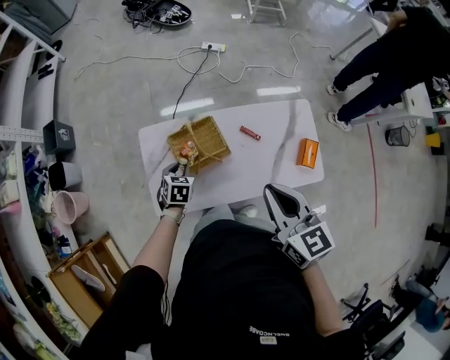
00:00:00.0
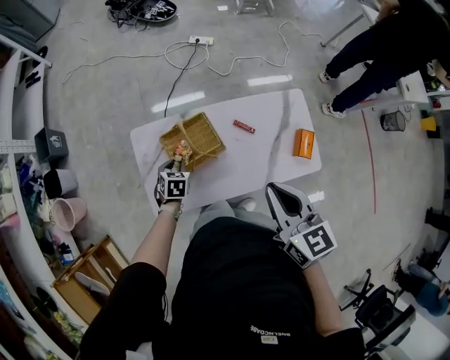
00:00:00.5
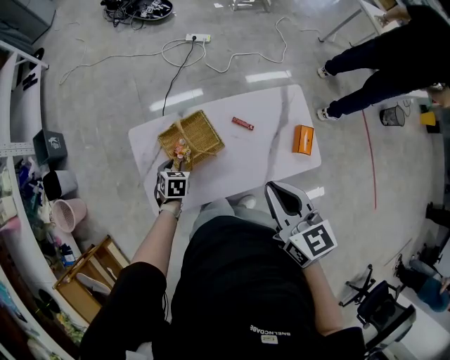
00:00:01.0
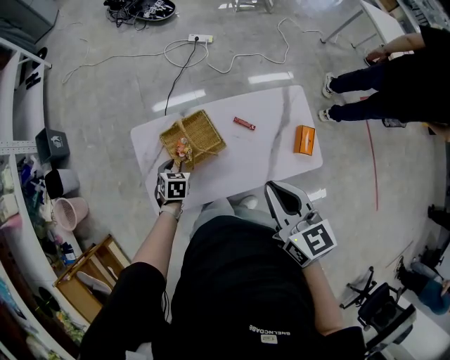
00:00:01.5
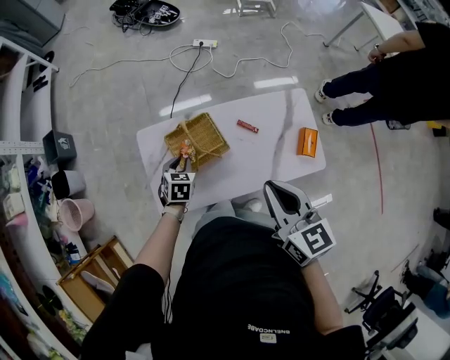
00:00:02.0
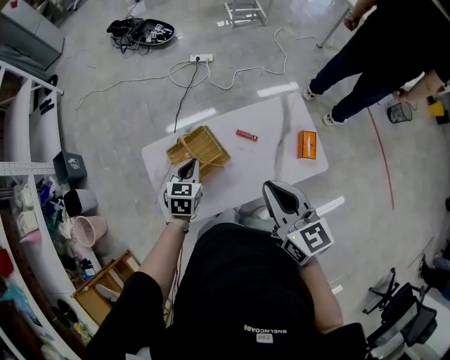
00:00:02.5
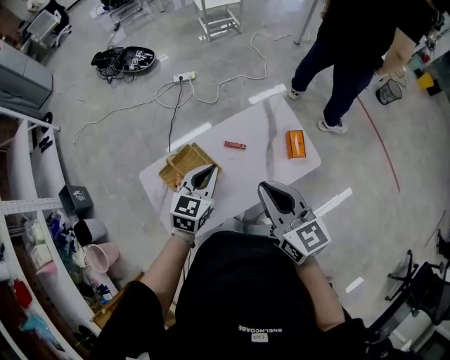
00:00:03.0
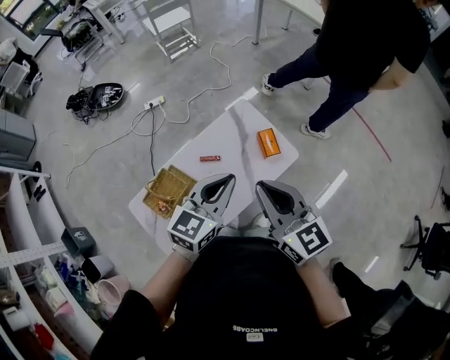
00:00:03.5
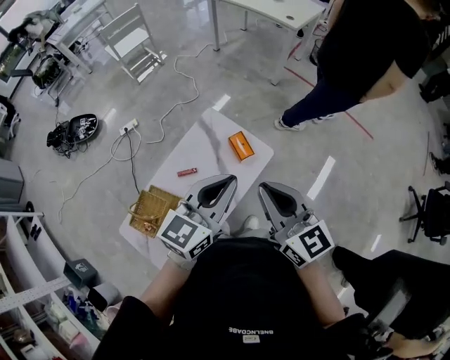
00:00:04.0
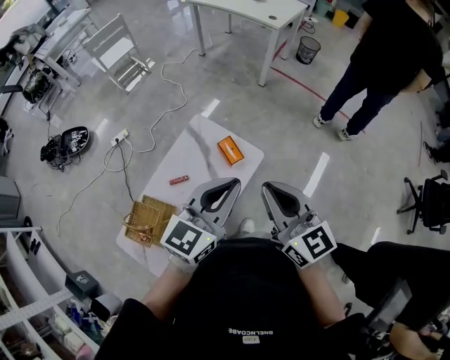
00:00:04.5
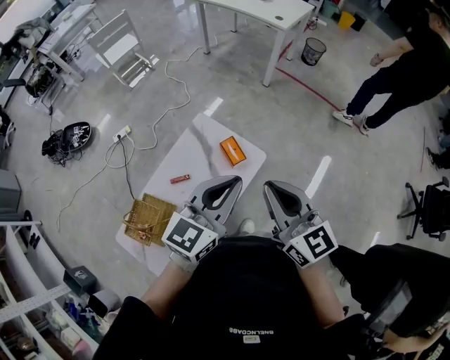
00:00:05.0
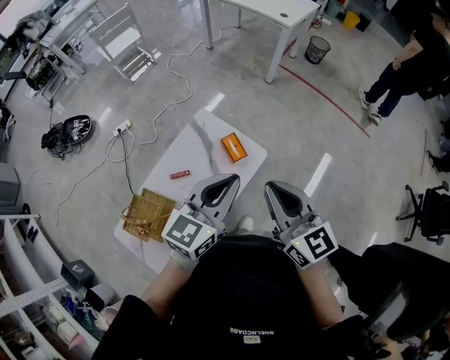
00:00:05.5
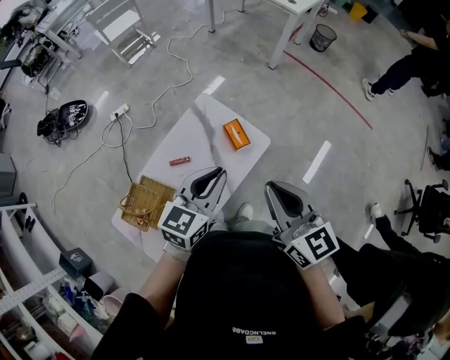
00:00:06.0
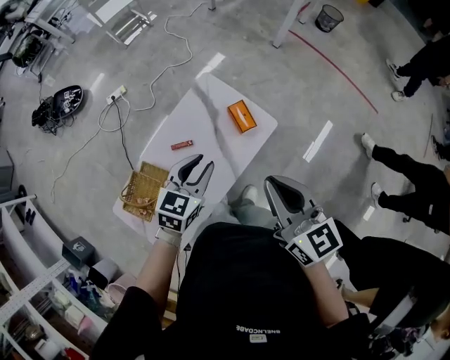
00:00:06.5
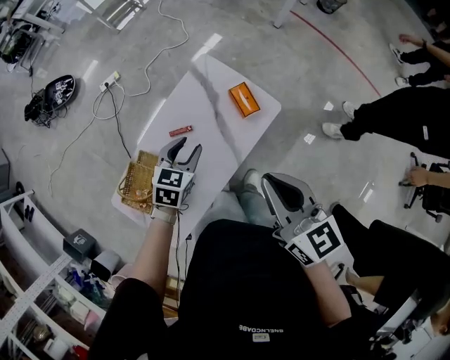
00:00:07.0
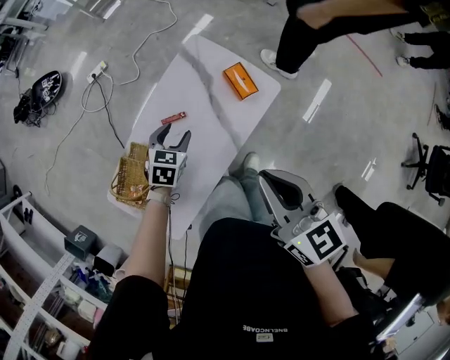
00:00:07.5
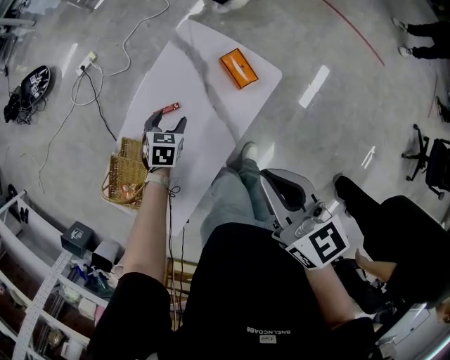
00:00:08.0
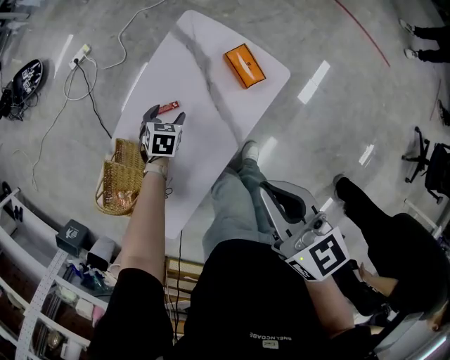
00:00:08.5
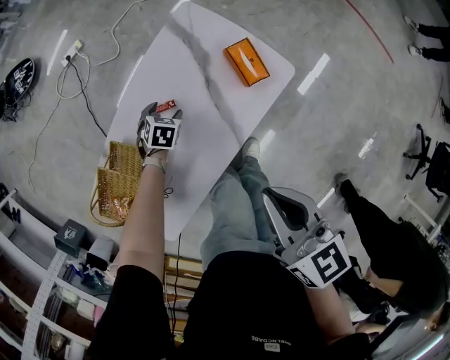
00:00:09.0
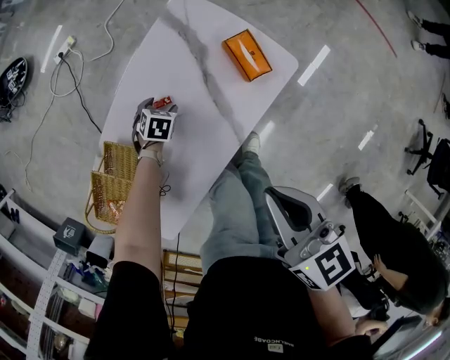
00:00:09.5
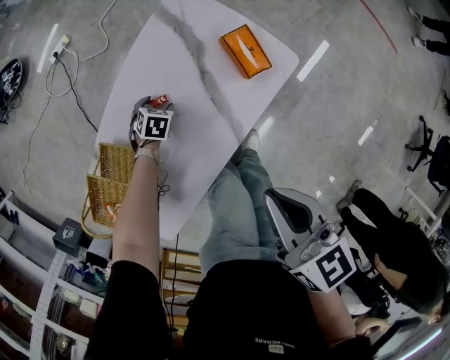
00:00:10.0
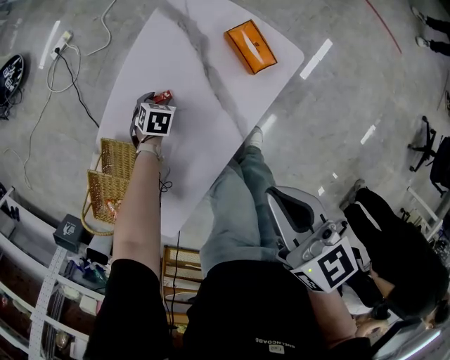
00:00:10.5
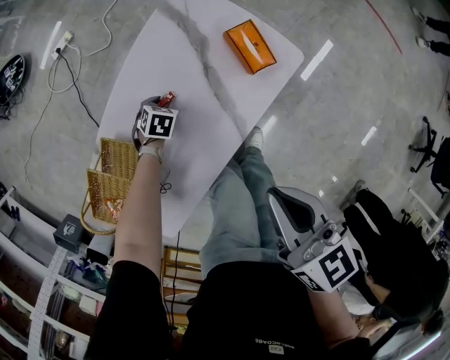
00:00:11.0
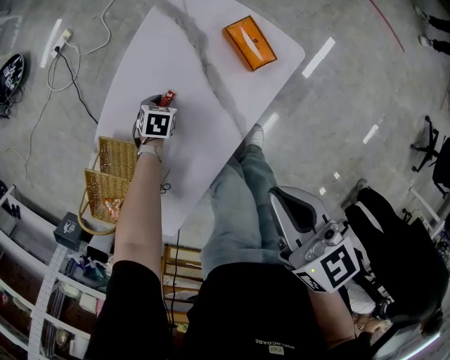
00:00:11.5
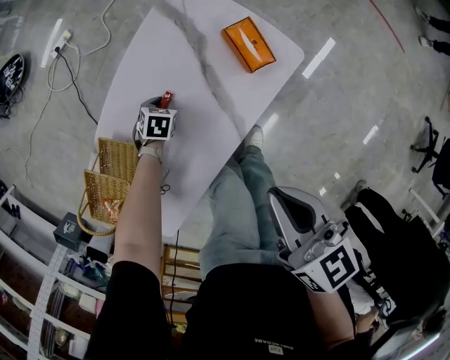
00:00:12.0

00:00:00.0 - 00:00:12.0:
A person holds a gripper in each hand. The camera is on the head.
00:00:00.0 - 00:00:02.0: The grippers move only a little.
00:00:02.0 - 00:00:04.0: The left gripper shifts by about 60 cm, and tips its fingers upward by some 50 degrees. Meanwhile the right gripper shifts by roughly 25 cm, and turns by approximately 40 degrees.
00:00:04.0 - 00:00:06.0: The left gripper heads downward, covering roughly 10 cm.
00:00:06.0 - 00:00:08.0: The right gripper heads downward and to the left, covering roughly 15 cm. Meanwhile the left gripper shifts some 40 cm downward and to the left, tips its fingers downward by approximately 40 degrees, and opens.
00:00:08.0 - 00:00:10.0: The right gripper goes about 10 cm downward. Meanwhile the left gripper is displaced downward by some 20 cm.
00:00:10.0 - 00:00:12.0: The left gripper closes.

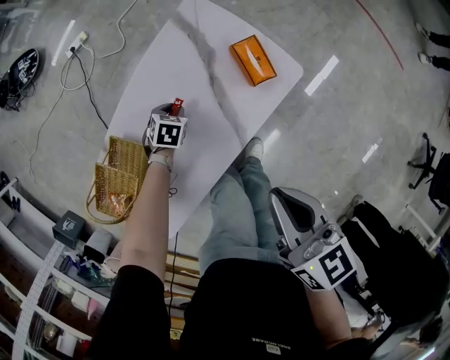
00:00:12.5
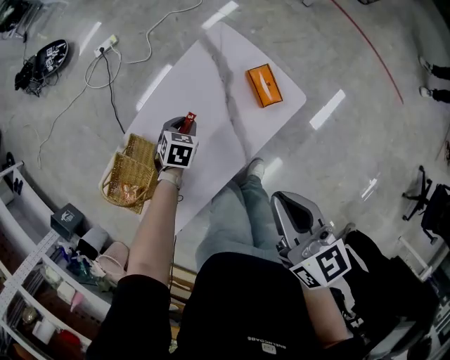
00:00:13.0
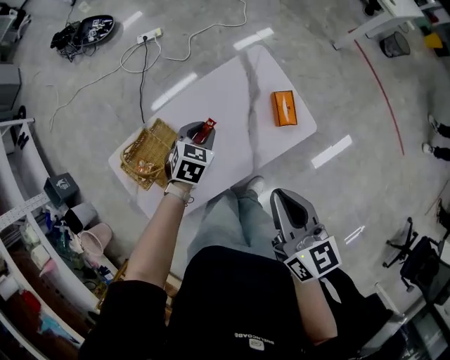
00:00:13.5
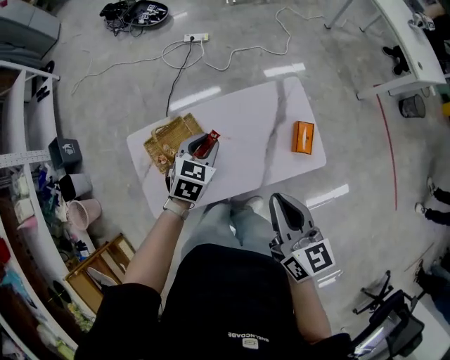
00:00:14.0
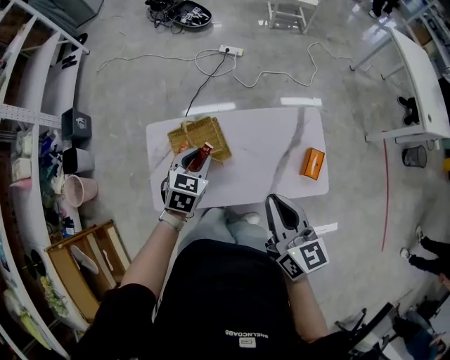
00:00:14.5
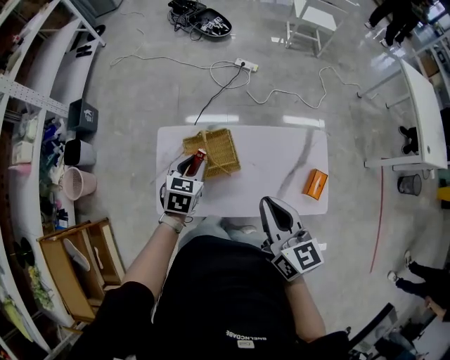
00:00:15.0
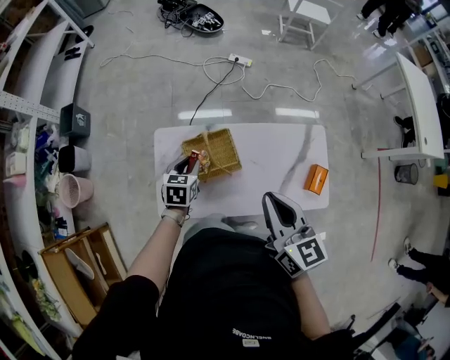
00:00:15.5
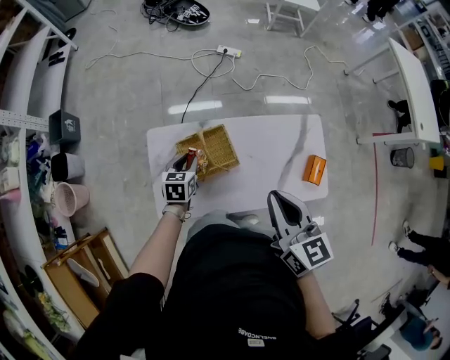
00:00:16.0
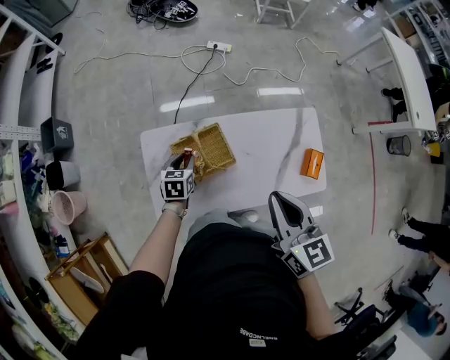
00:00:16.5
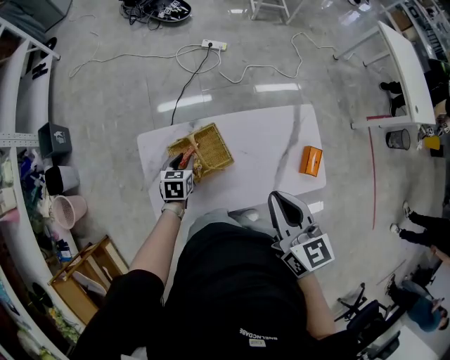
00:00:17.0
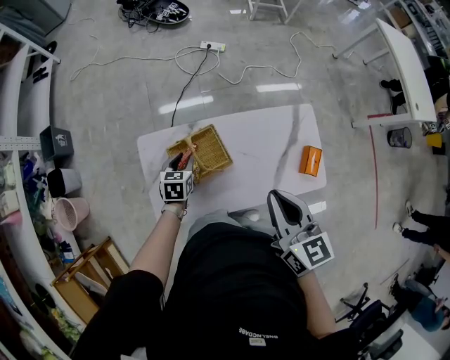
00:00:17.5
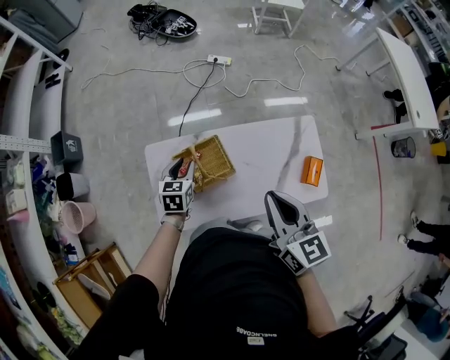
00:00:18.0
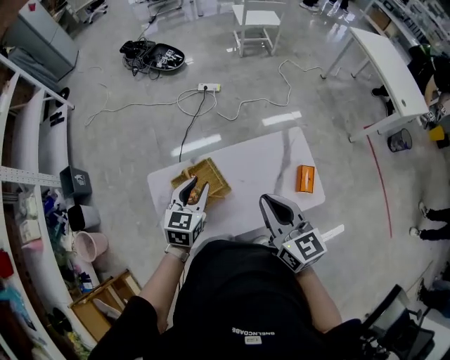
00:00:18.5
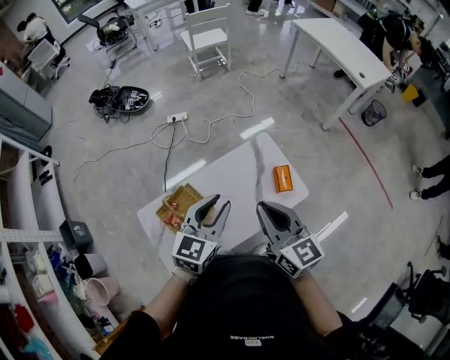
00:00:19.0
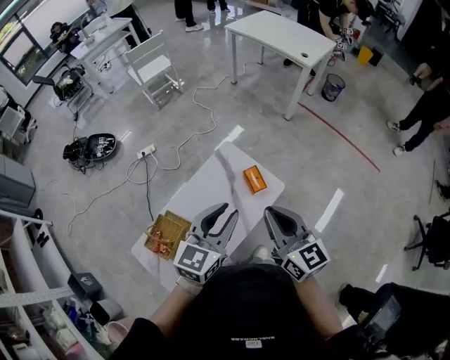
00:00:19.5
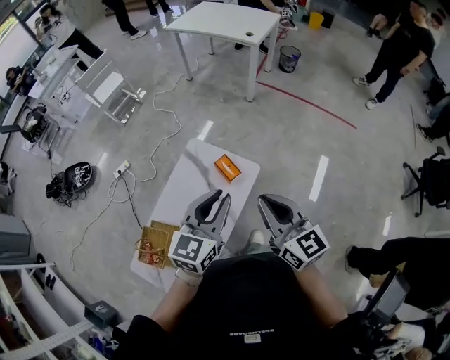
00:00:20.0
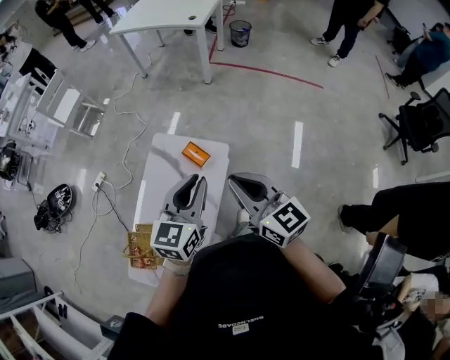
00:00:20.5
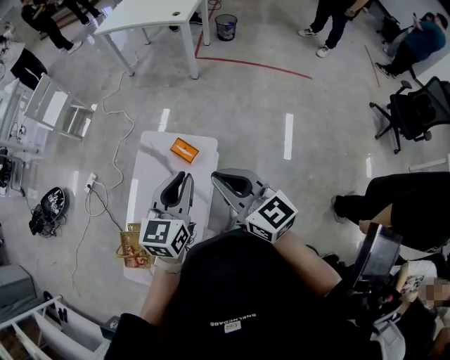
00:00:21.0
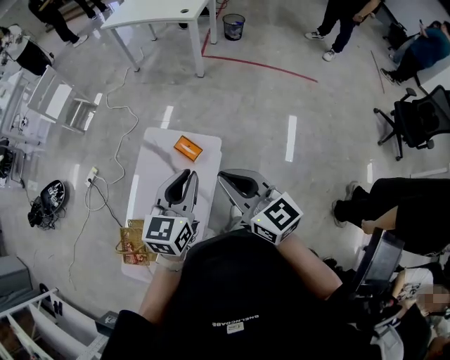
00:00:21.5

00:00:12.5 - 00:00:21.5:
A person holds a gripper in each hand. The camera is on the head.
00:00:12.5 - 00:00:14.5: The left gripper travels upward by roughly 40 cm, and turns by approximately 50 degrees. The right gripper moves upward, roughly 15 cm, and rotates approximately 40 degrees.
00:00:14.5 - 00:00:17.0: The left gripper shifts approximately 20 cm downward, to the left and forward, and turns by roughly 20 degrees, while the right gripper goes roughly 10 cm to the left and forward.
00:00:17.0 - 00:00:19.5: The left gripper changes place by about 60 cm, and tilts its fingers approximately 40 degrees upward. The right gripper moves approximately 30 cm, and changes its angle by approximately 40 degrees.
00:00:19.5 - 00:00:21.5: The two grippers go about 10 cm to the right.

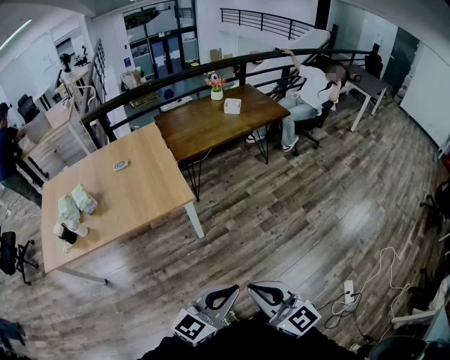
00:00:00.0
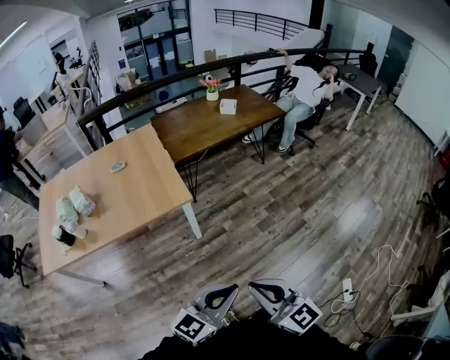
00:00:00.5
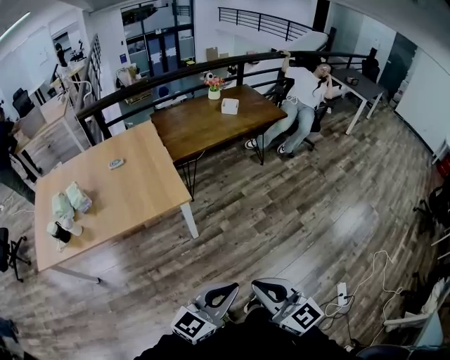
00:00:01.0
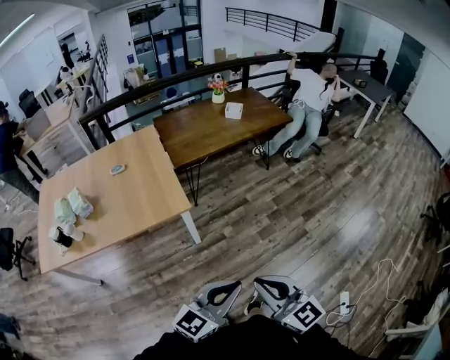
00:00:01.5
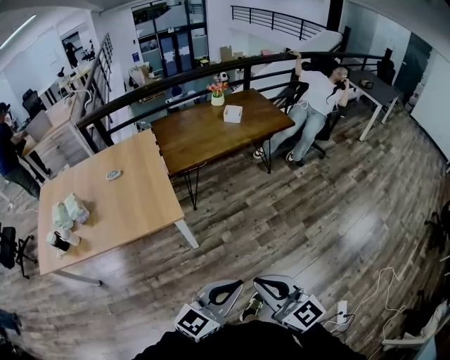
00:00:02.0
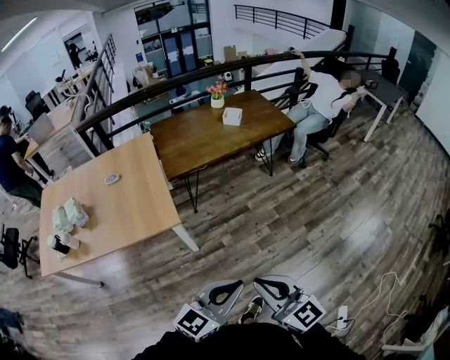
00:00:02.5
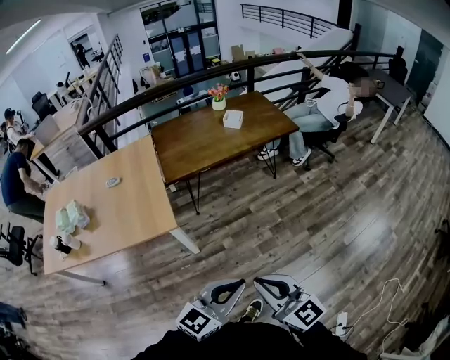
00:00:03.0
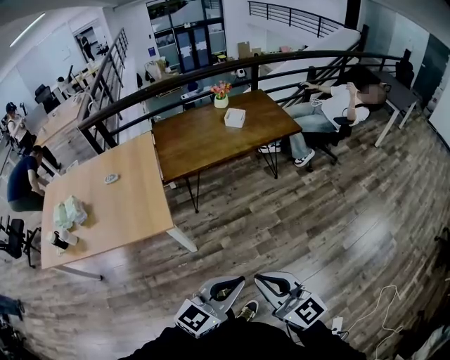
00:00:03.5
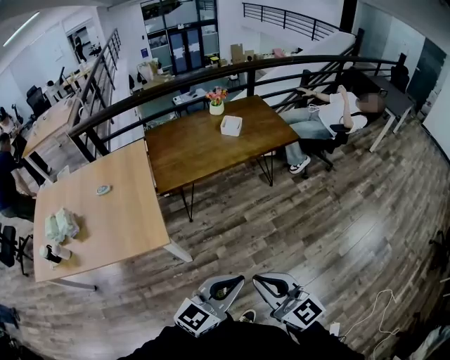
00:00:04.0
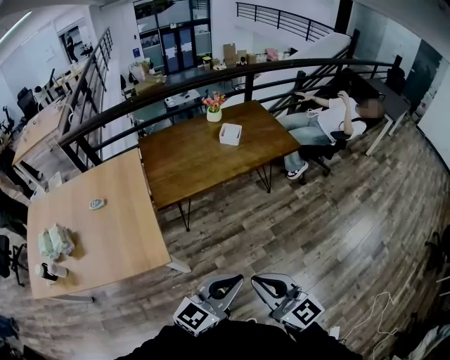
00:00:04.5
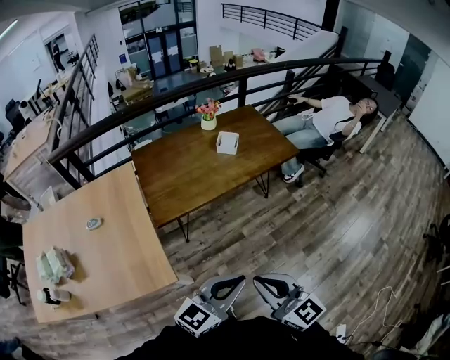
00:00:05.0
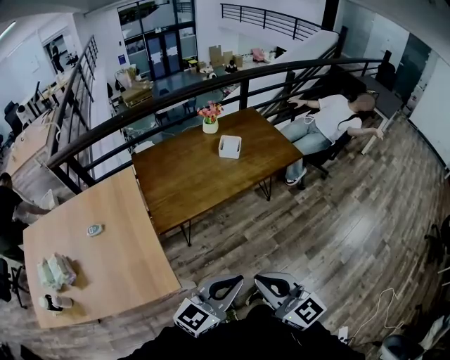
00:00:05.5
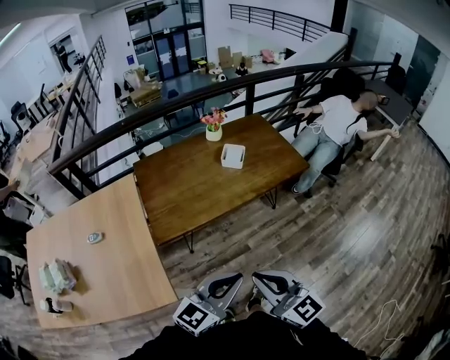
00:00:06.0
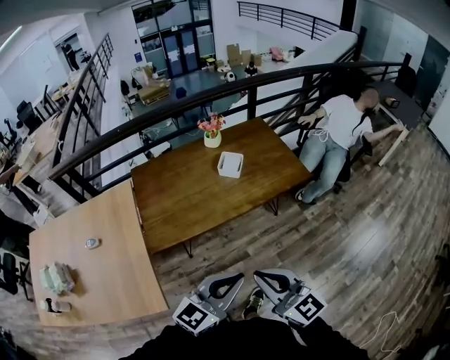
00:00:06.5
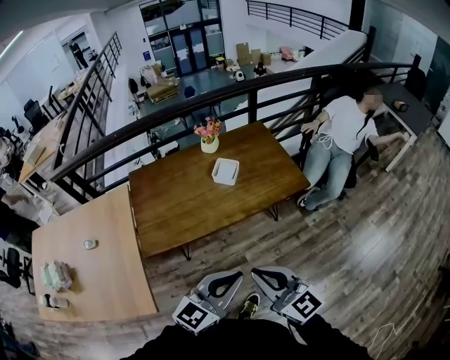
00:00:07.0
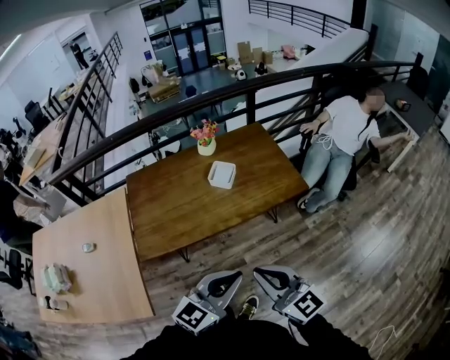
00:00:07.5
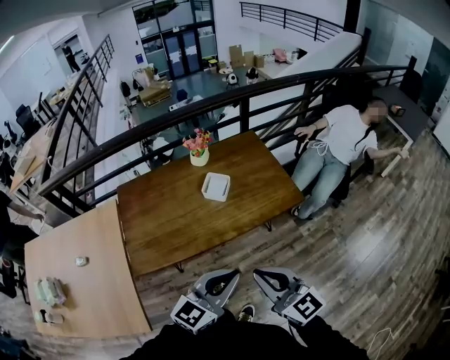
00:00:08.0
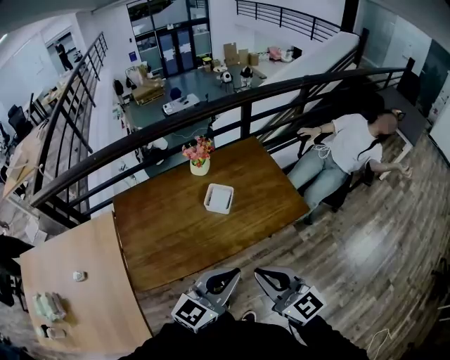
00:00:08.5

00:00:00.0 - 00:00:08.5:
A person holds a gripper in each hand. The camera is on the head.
00:00:00.0 - 00:00:02.0: The grippers both shift forward and to the right by about 20 cm.
00:00:02.0 - 00:00:04.0: Both grippers travel together forward and to the right, about 20 cm.
00:00:04.0 - 00:00:06.5: The grippers both shift forward by some 35 cm.
00:00:06.5 - 00:00:08.5: Both grippers travel together forward, roughly 25 cm.
